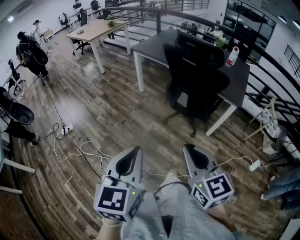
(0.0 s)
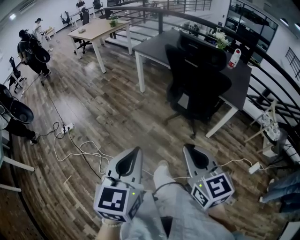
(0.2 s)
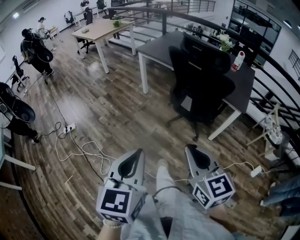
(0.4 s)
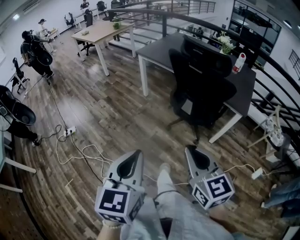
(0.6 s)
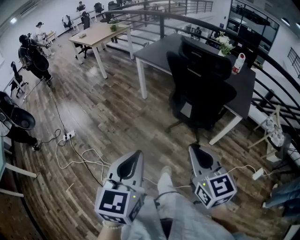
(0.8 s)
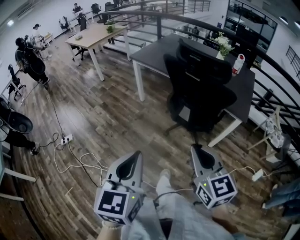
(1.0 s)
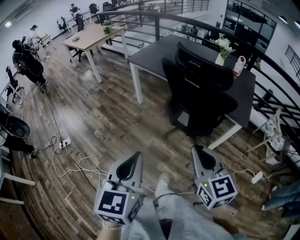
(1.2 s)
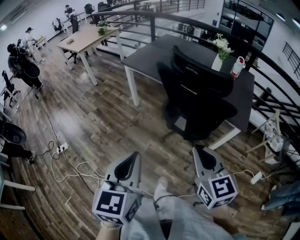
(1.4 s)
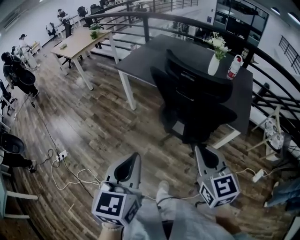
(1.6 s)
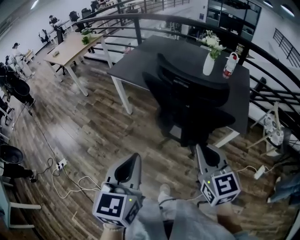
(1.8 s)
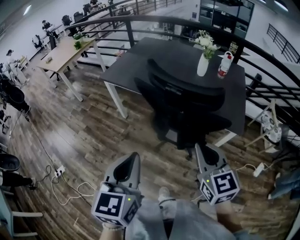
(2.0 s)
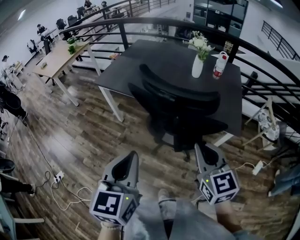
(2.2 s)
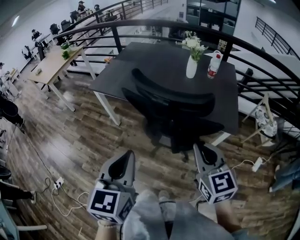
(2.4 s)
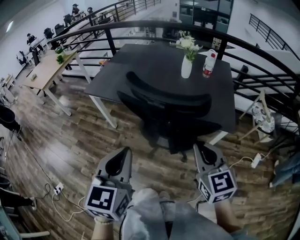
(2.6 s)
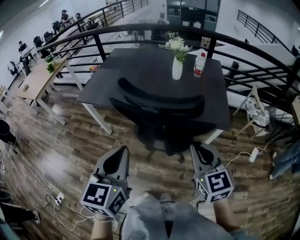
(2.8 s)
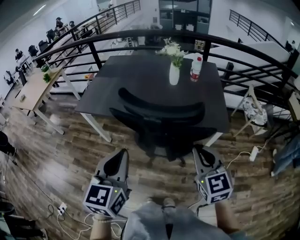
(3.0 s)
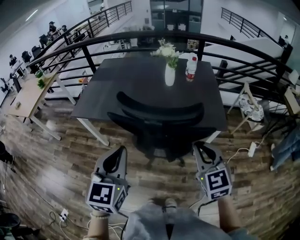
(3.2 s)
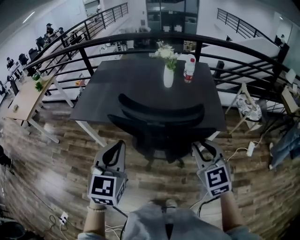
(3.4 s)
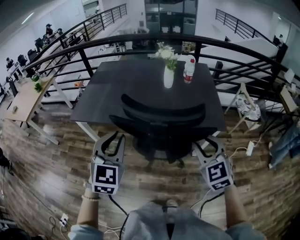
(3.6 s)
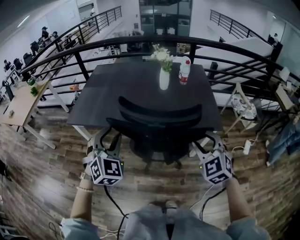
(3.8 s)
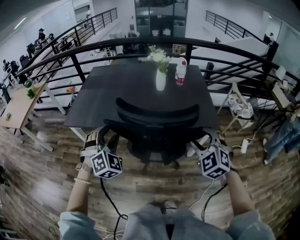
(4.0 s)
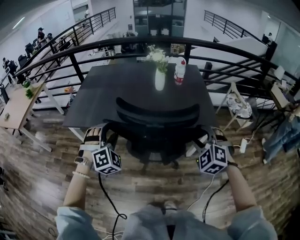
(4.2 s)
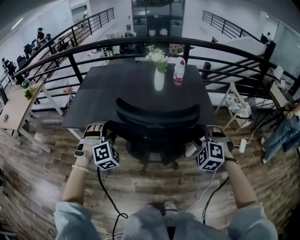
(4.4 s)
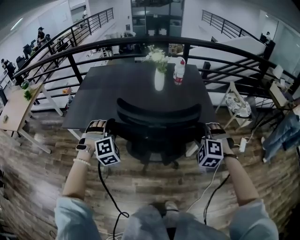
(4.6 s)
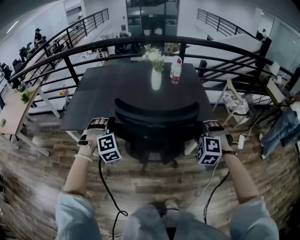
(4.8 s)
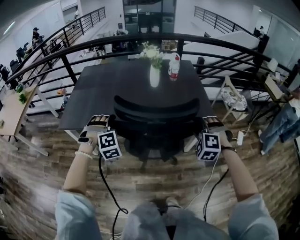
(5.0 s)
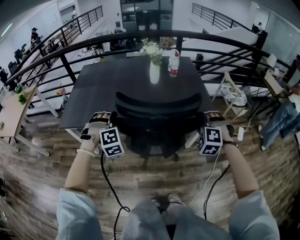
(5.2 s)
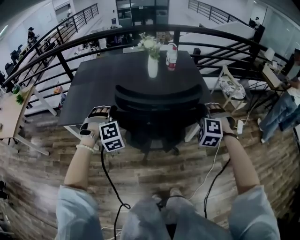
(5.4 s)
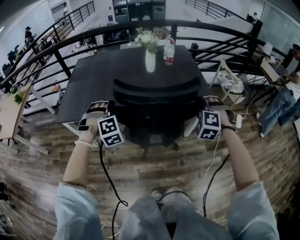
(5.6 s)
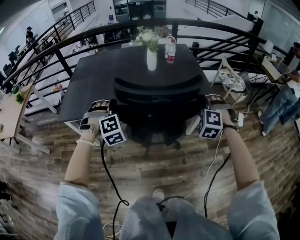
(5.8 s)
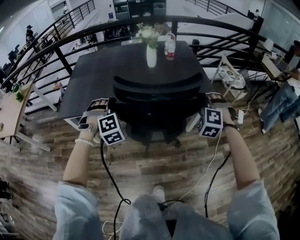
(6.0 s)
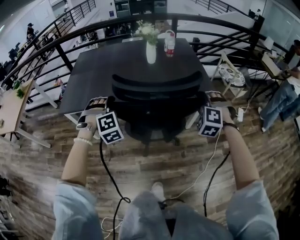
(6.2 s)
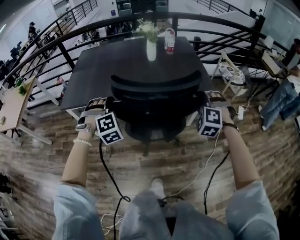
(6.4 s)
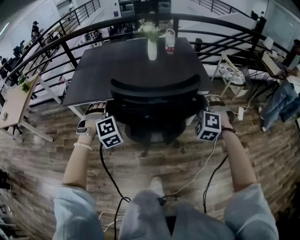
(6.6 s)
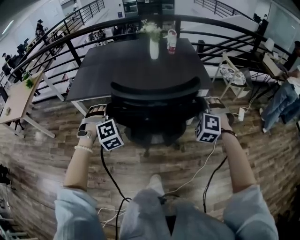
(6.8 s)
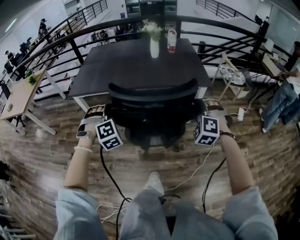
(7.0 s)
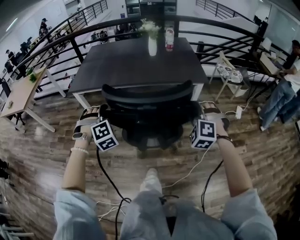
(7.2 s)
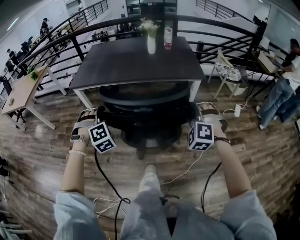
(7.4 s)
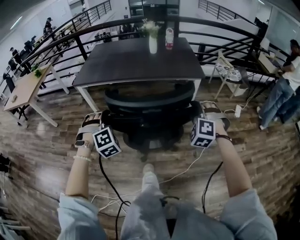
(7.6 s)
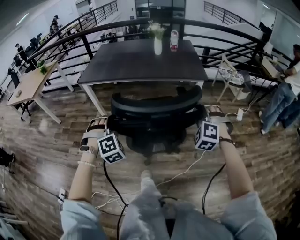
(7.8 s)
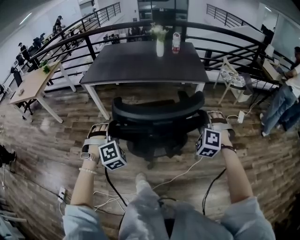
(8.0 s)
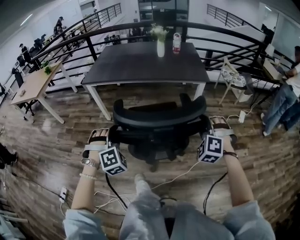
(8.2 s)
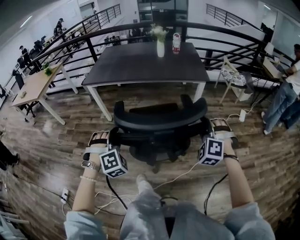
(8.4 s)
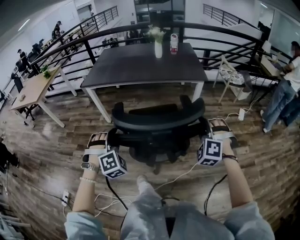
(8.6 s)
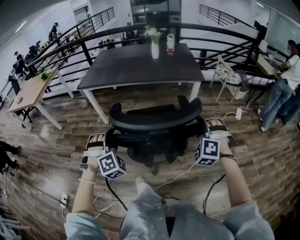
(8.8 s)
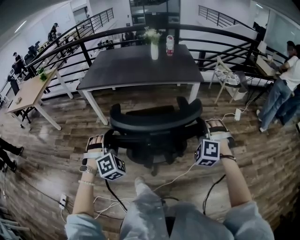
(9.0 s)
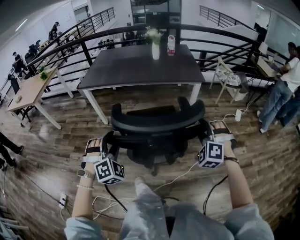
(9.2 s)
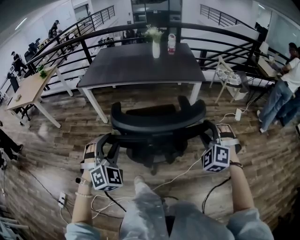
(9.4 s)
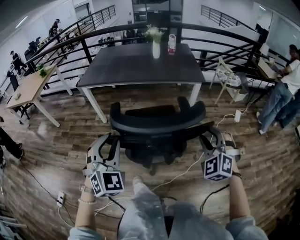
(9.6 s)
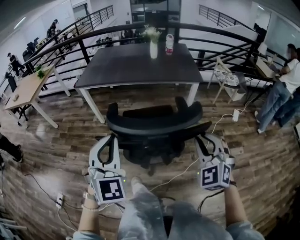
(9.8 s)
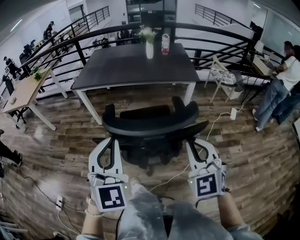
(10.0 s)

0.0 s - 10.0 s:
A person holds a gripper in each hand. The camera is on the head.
0.0 s - 1.4 s: Both grippers travel together forward, approximately 20 cm.
1.4 s - 2.8 s: The right gripper is displaced forward and to the right by roughly 20 cm, and rotates about 20 degrees. The left gripper is displaced forward by roughly 25 cm, and turns by approximately 20 degrees.
2.8 s - 4.2 s: The right gripper travels forward and downward by some 10 cm, twists some 50 degrees counterclockwise, seen from behind, and opens up, while the left gripper heads forward, downward and to the left, covering some 25 cm, rolls clockwise, seen from behind, by some 80 degrees, and opens up.
4.2 s - 5.8 s: The right gripper turns by some 20 degrees; the left gripper shifts by roughly 5 cm.
5.8 s - 7.2 s: Both grippers move backward, approximately 25 cm.
7.2 s - 8.6 s: The grippers both shift backward by roughly 20 cm.
8.6 s - 10.0 s: The left gripper travels upward and backward by about 20 cm, rolls counterclockwise, seen from behind, by approximately 50 degrees, and closes its fingers; the right gripper travels upward, backward and to the left by about 15 cm, twists roughly 40 degrees clockwise, seen from behind, and closes up.

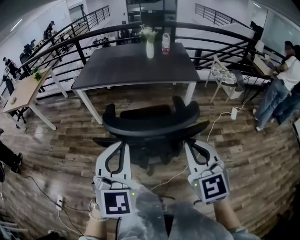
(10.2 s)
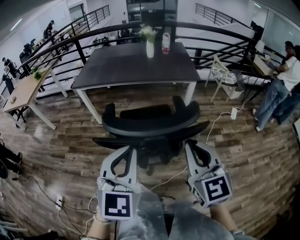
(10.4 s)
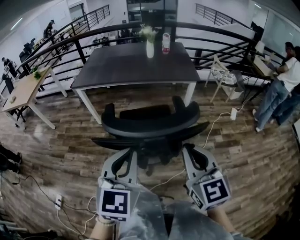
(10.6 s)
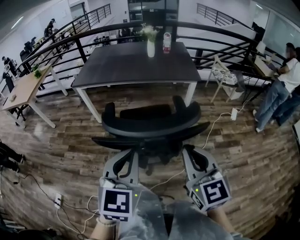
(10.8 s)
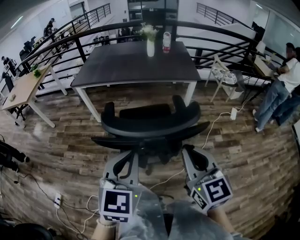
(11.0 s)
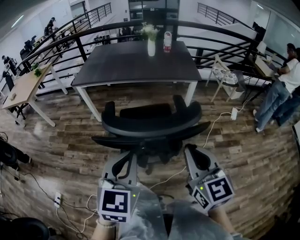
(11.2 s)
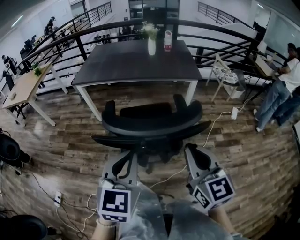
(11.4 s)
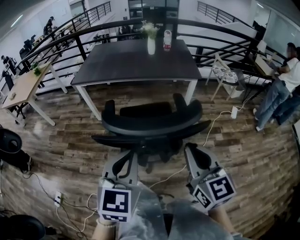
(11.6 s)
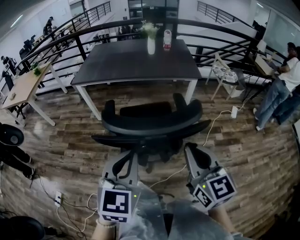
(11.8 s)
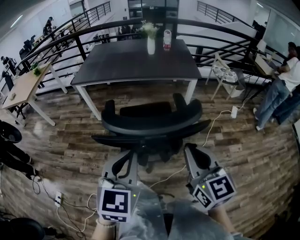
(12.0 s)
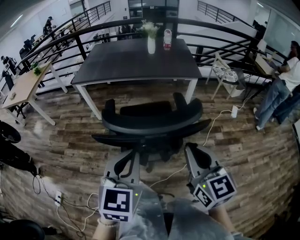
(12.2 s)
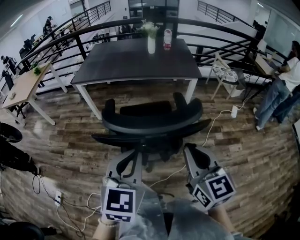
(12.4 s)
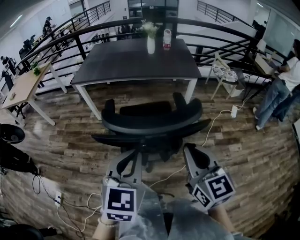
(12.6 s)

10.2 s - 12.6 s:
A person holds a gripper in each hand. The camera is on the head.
10.2 s - 11.4 s: The left gripper changes place by roughly 5 cm, and changes its angle by roughly 20 degrees.
11.4 s - 12.6 s: The two grippers keep their place.

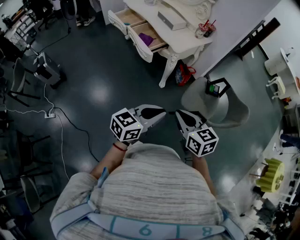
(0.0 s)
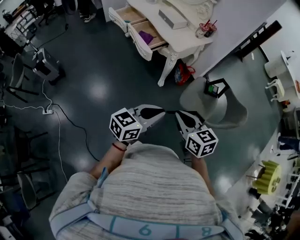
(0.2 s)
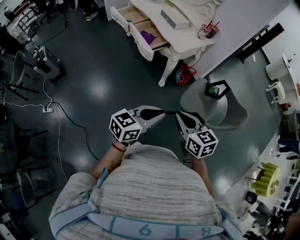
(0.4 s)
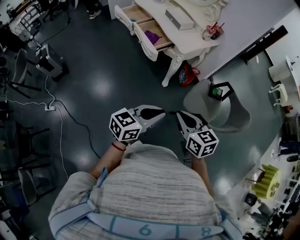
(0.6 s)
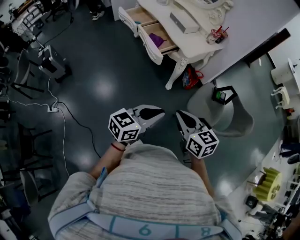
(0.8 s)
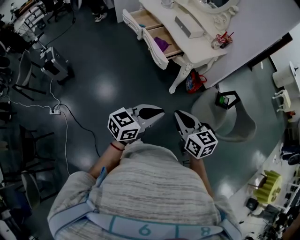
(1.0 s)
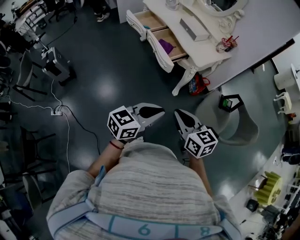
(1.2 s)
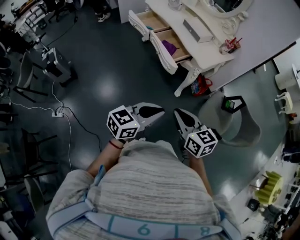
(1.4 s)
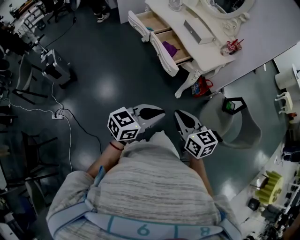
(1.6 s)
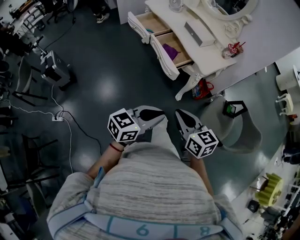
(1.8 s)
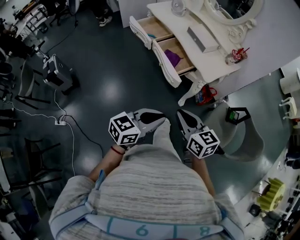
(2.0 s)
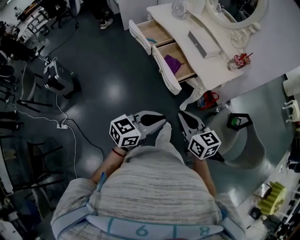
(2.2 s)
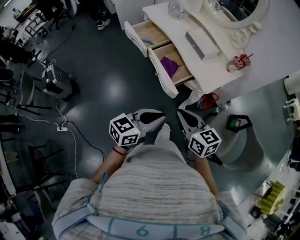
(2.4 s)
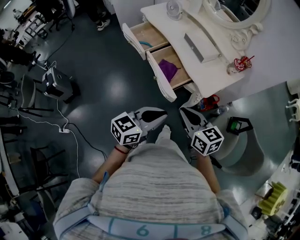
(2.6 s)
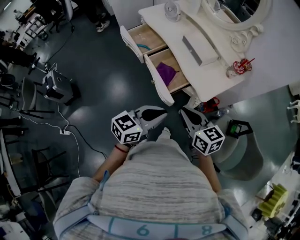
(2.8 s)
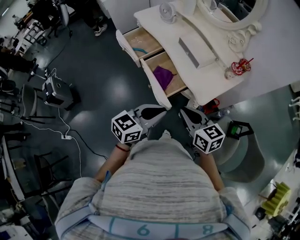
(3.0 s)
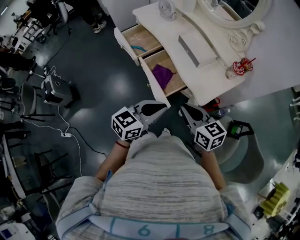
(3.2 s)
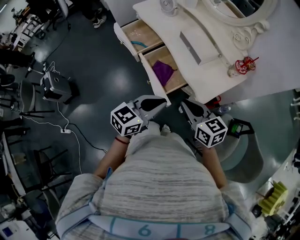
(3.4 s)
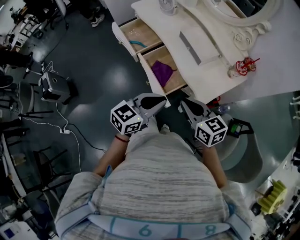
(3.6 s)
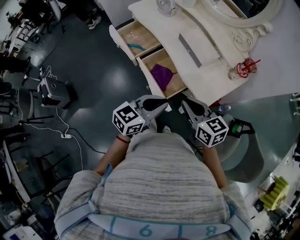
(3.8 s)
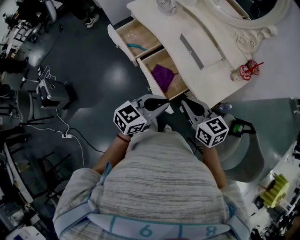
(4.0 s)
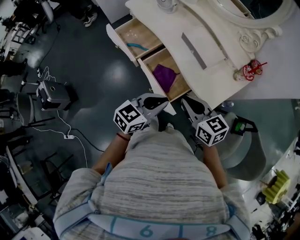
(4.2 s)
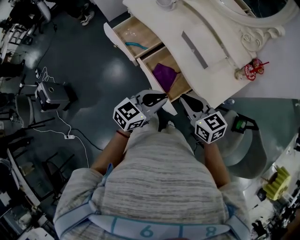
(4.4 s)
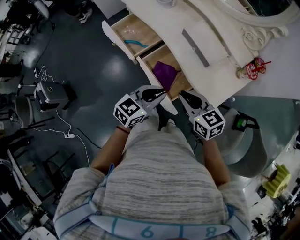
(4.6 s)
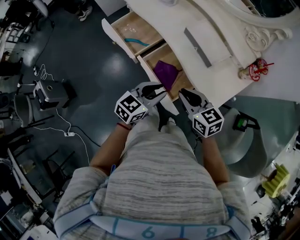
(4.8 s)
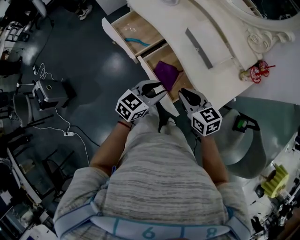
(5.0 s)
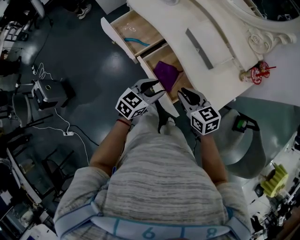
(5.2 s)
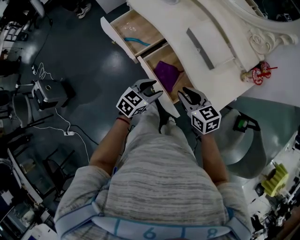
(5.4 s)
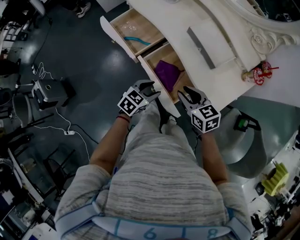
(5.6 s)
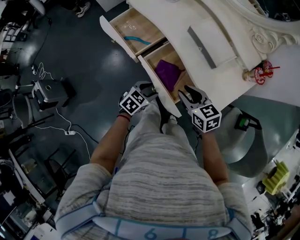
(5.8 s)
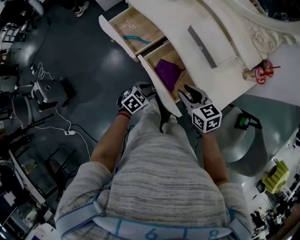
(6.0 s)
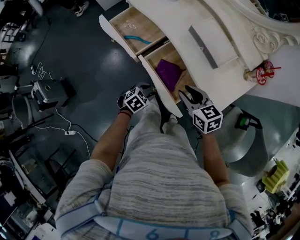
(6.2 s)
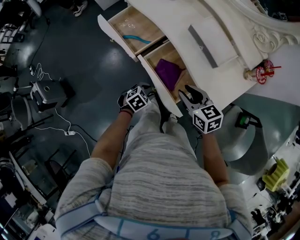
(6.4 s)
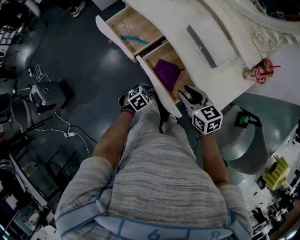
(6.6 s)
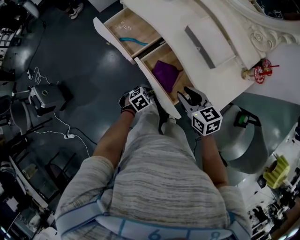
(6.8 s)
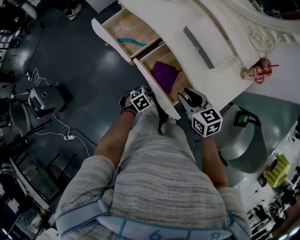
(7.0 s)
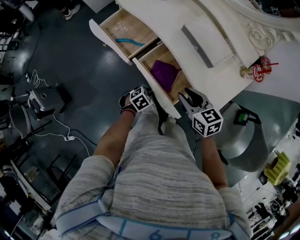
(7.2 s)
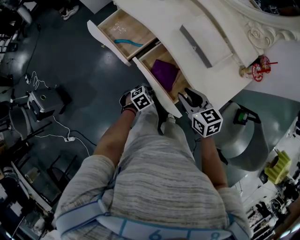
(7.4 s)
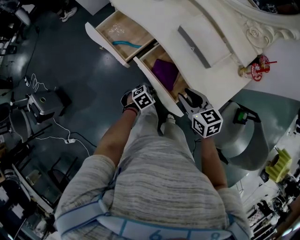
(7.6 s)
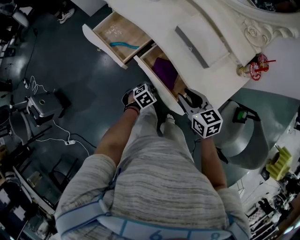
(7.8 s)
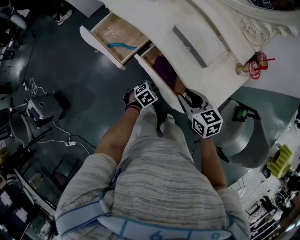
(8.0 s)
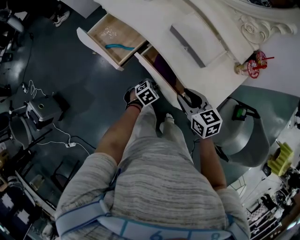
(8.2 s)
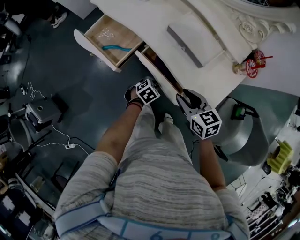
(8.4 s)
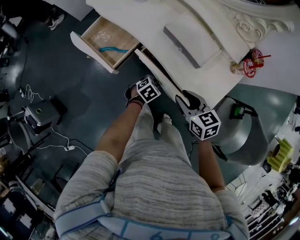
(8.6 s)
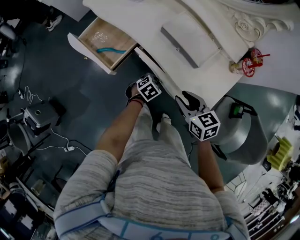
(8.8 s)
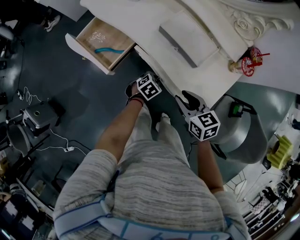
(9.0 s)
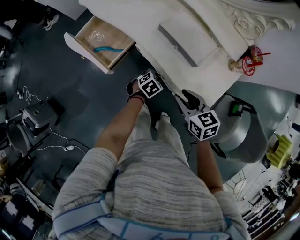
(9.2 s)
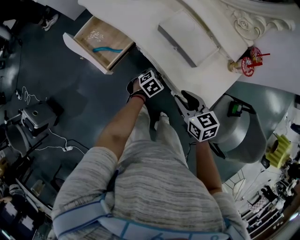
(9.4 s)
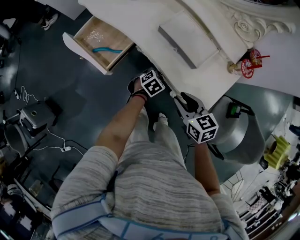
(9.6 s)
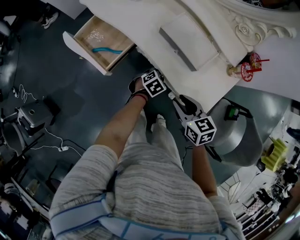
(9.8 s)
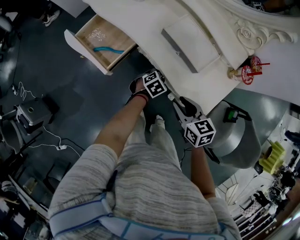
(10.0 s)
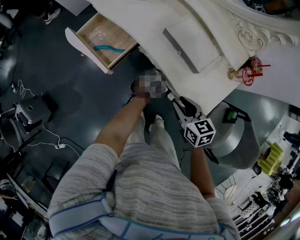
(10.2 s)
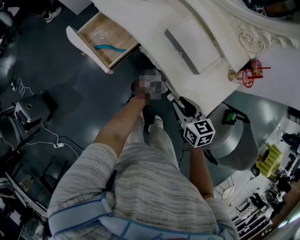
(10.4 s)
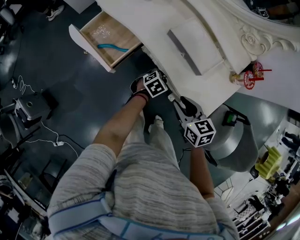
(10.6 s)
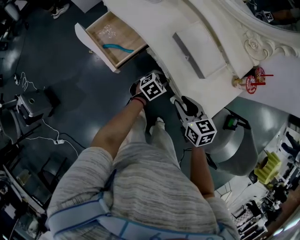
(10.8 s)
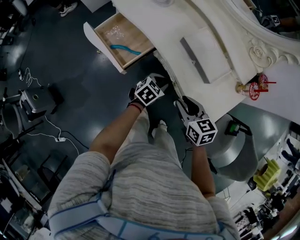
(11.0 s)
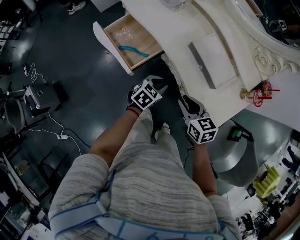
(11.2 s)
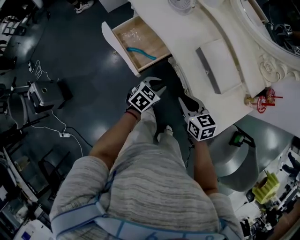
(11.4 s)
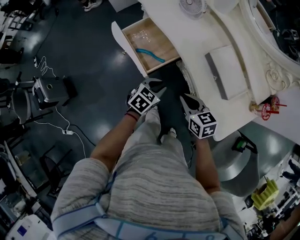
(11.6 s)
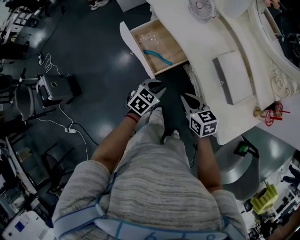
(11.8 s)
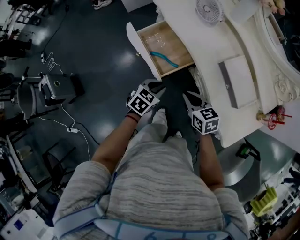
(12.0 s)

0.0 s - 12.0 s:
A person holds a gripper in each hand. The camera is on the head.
0.0 s - 1.6 s: Both grippers move to the left and forward, roughly 20 cm.
1.6 s - 3.0 s: Both grippers travel together forward, roughly 30 cm.
3.0 s - 4.4 s: The right gripper is displaced forward and to the left by approximately 15 cm, while the left gripper goes approximately 15 cm forward and downward.
4.4 s - 6.0 s: The right gripper travels downward and forward by about 10 cm. Meanwhile the left gripper shifts some 25 cm downward, points its fingers about 40 degrees further downward, and opens.
6.0 s - 7.6 s: The left gripper heads downward, covering roughly 5 cm, and closes up.
7.6 s - 9.0 s: The right gripper moves some 5 cm, while the left gripper travels forward and to the right by approximately 15 cm.
9.0 s - 10.4 s: The grippers make only small movements.
10.4 s - 12.0 s: The right gripper changes place by some 20 cm. The left gripper shifts by about 30 cm, and changes its angle by some 30 degrees.
